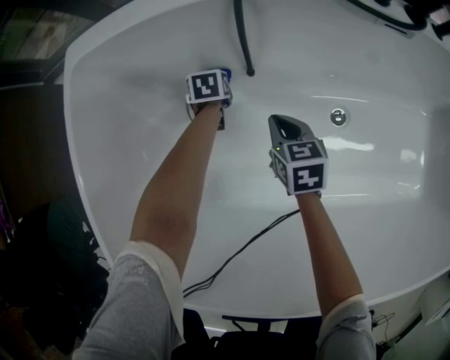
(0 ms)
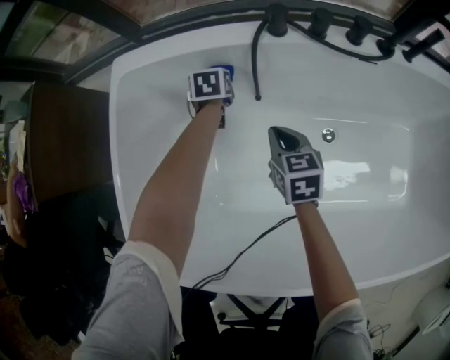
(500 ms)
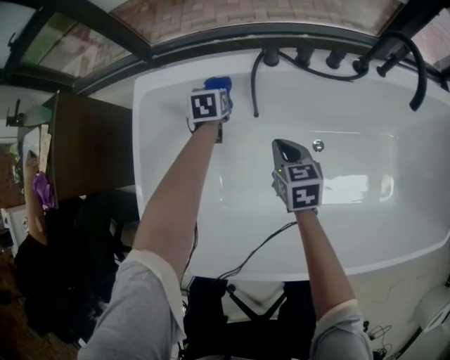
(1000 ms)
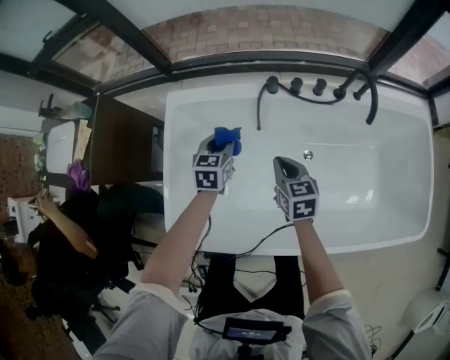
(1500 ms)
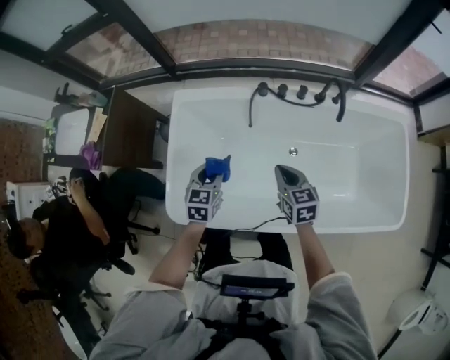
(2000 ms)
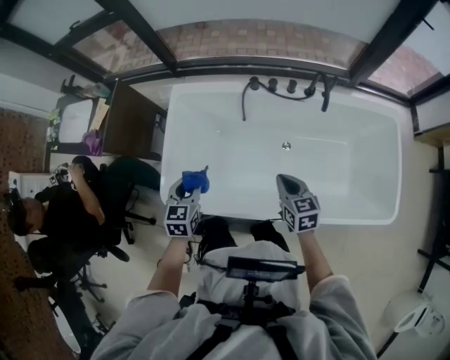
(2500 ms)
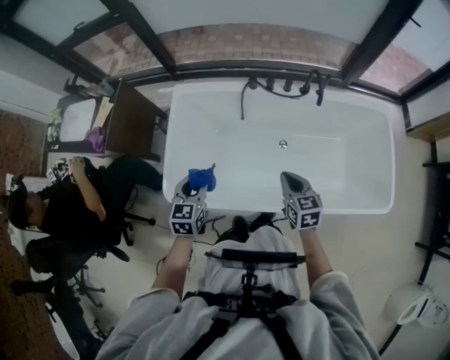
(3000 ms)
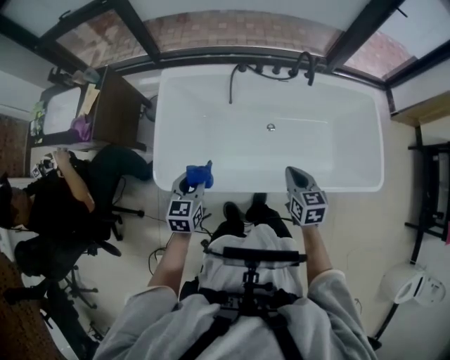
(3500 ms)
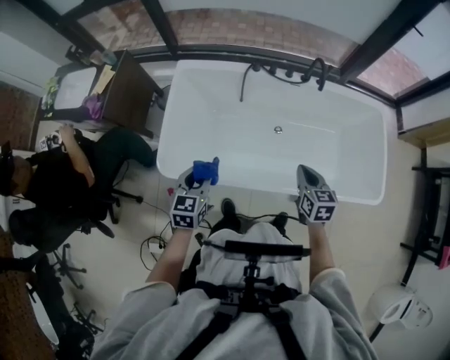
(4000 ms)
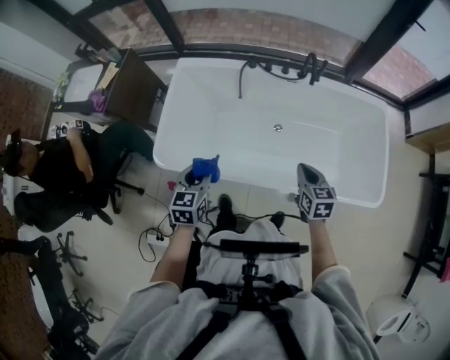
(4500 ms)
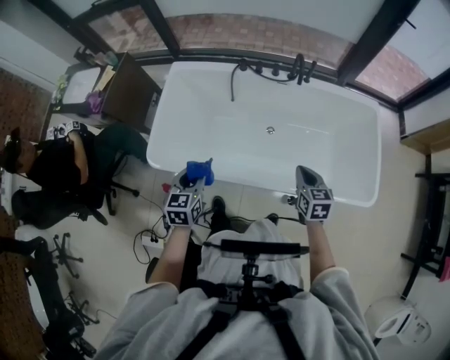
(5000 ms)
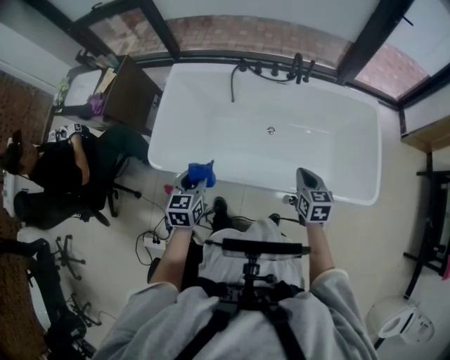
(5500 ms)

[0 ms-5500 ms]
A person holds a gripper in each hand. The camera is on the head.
0 ms to 2000 ms: The left gripper is displaced upward and backward by about 70 cm, and rotates some 30 degrees, while the right gripper travels upward by approximately 50 cm.
2000 ms to 3500 ms: The two grippers go approximately 20 cm backward.
3500 ms to 5500 ms: The right gripper travels to the right by about 20 cm. The left gripper travels to the right and backward by approximately 15 cm.

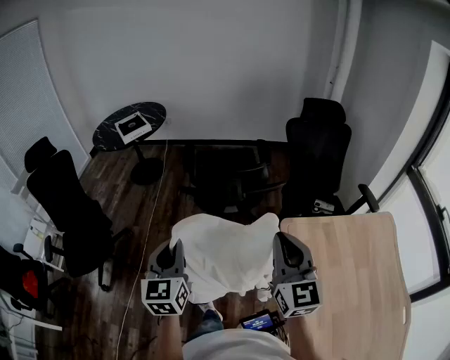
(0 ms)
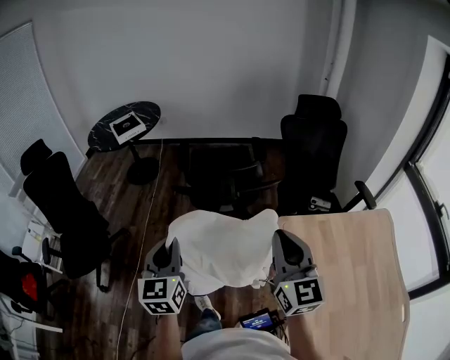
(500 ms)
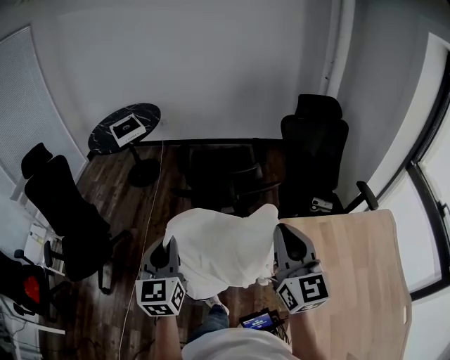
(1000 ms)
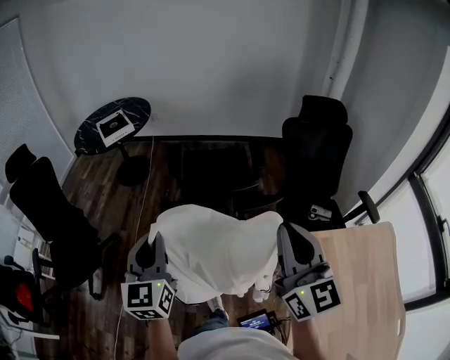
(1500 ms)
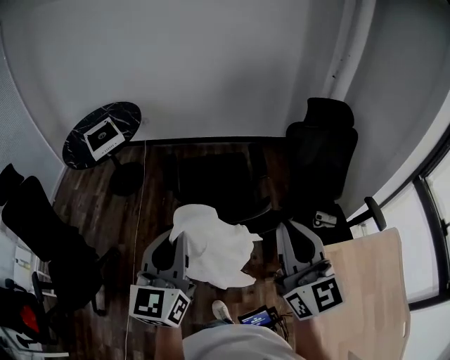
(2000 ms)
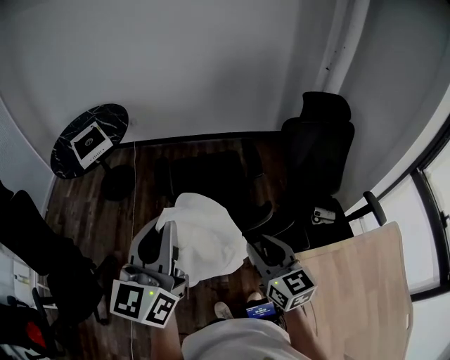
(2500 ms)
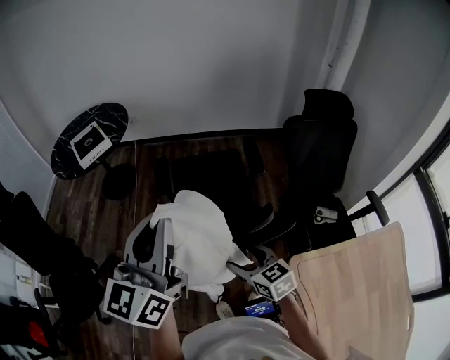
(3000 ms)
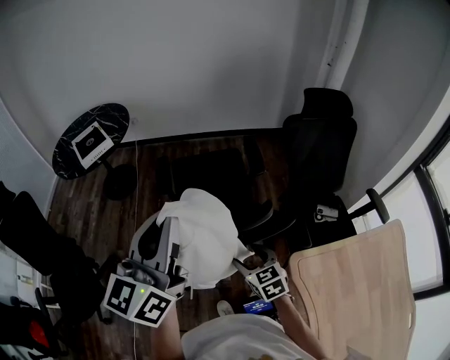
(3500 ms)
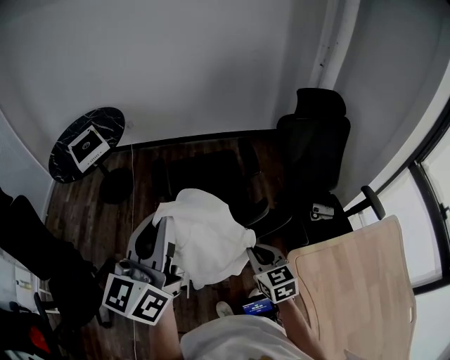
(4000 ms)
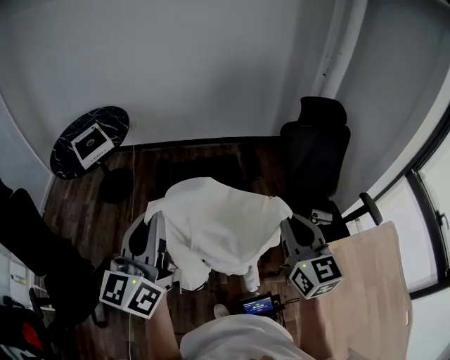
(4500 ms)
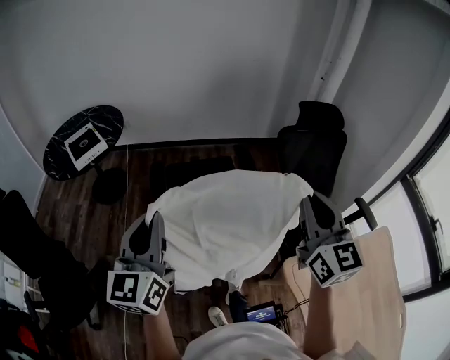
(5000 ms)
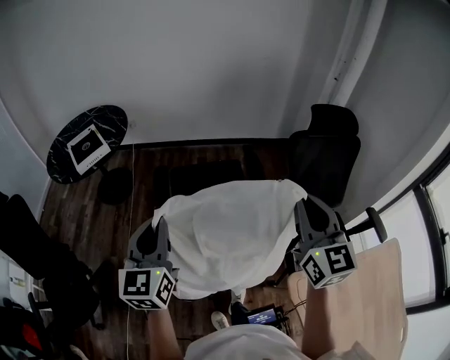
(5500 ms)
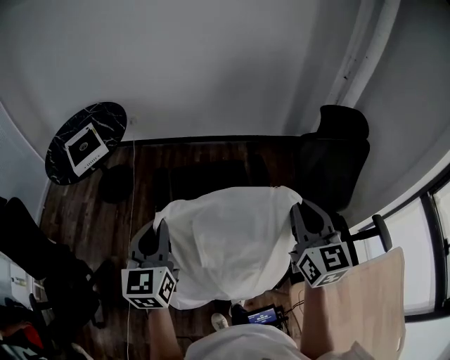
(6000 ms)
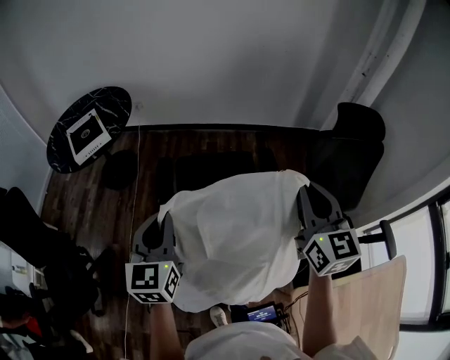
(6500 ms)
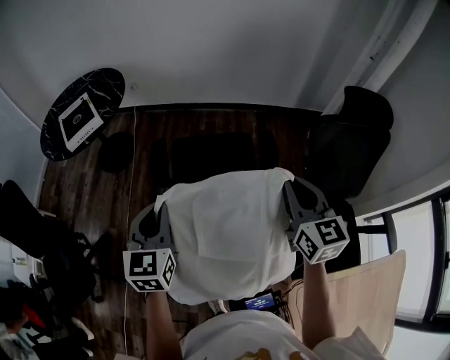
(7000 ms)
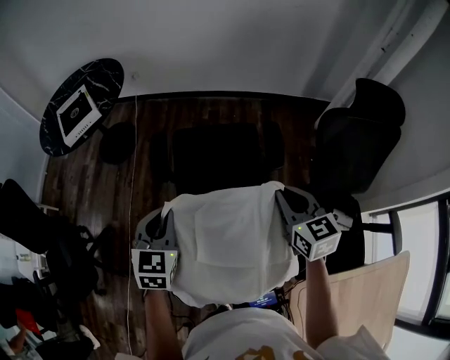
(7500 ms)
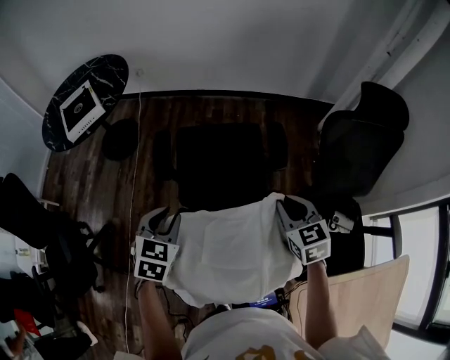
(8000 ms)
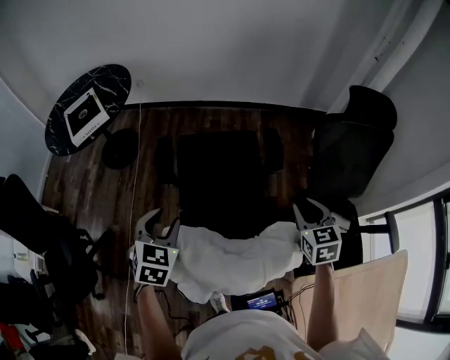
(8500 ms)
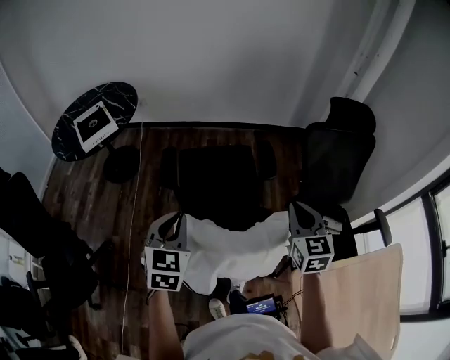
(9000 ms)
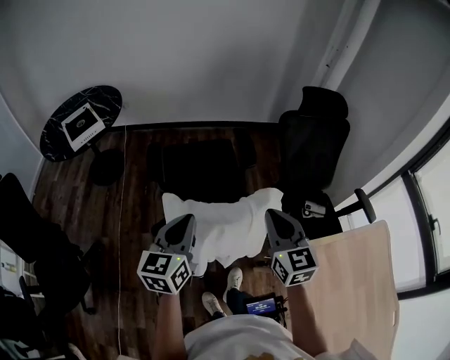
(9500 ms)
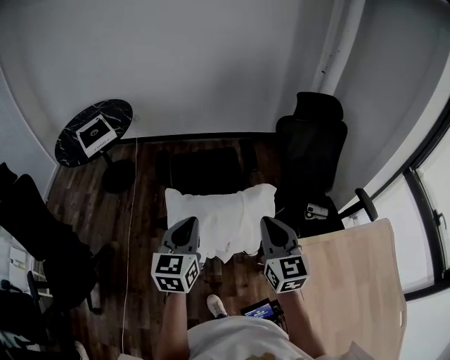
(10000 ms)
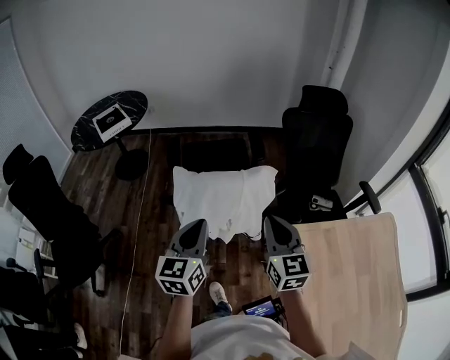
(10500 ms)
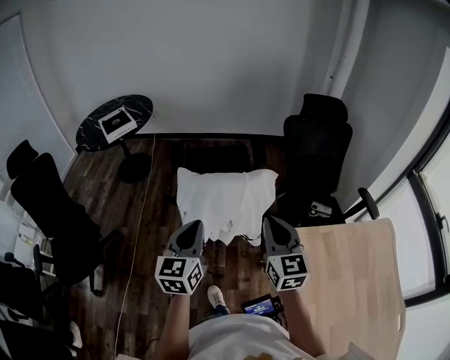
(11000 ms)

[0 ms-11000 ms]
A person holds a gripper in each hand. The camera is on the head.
0 ms to 2000 ms: Both grippers move forward, approximately 25 cm.
2000 ms to 3500 ms: The left gripper travels forward and upward by approximately 10 cm; the right gripper goes approximately 30 cm downward, points its fingers about 50 degrees further downward, and opens its fingers.
3500 ms to 5500 ms: The right gripper heads upward and forward, covering about 35 cm, tilts its fingers approximately 40 degrees upward, and closes its fingers, while the left gripper is displaced forward, downward and to the left by roughly 15 cm, and rotates some 20 degrees.
5500 ms to 7500 ms: The two grippers go some 25 cm downward and forward. The left gripper rotates roughly 30 degrees, while the right gripper rotates some 30 degrees.
7500 ms to 9000 ms: Both grippers move backward and upward, about 15 cm. The right gripper rotates about 20 degrees, while the left gripper opens and closes again.
9000 ms to 11000 ms: The two grippers go some 25 cm backward. The left gripper turns by about 20 degrees.

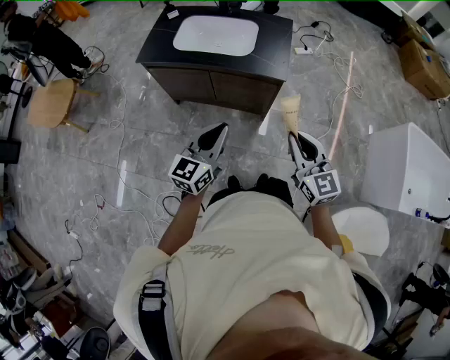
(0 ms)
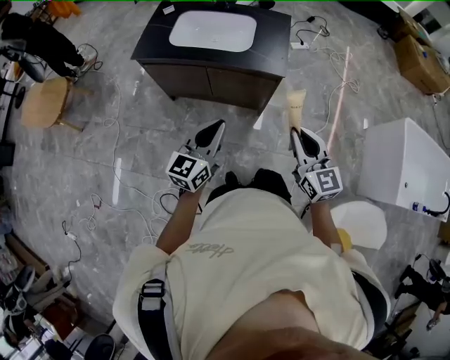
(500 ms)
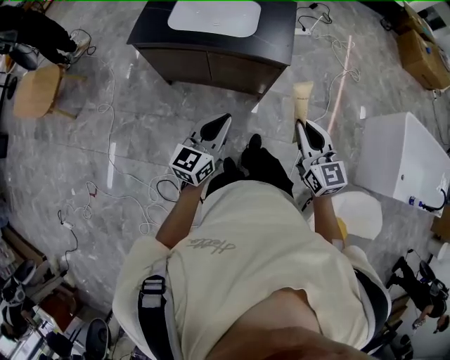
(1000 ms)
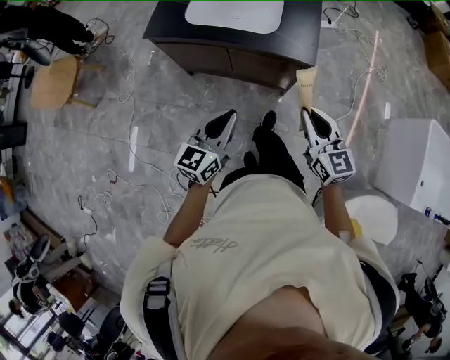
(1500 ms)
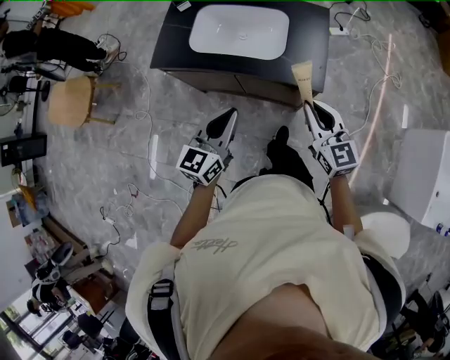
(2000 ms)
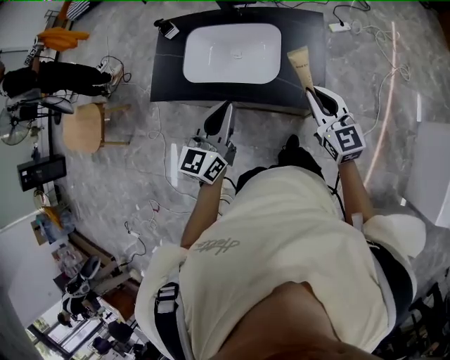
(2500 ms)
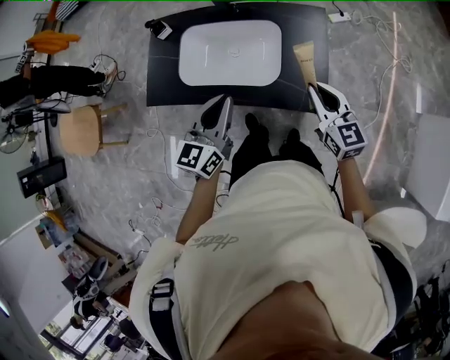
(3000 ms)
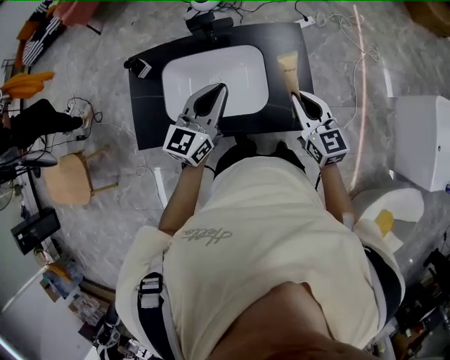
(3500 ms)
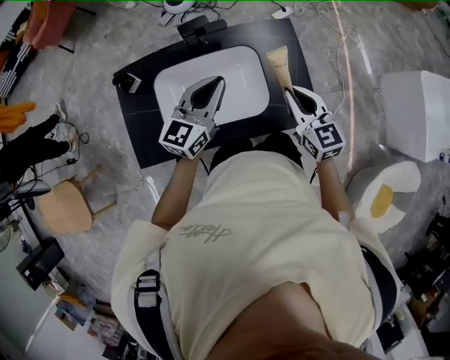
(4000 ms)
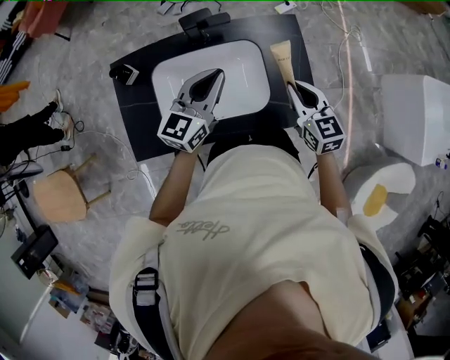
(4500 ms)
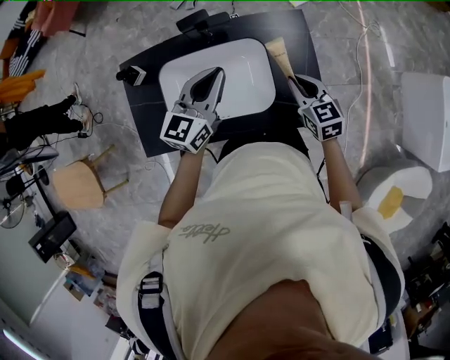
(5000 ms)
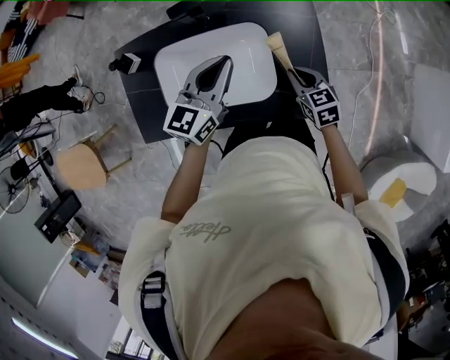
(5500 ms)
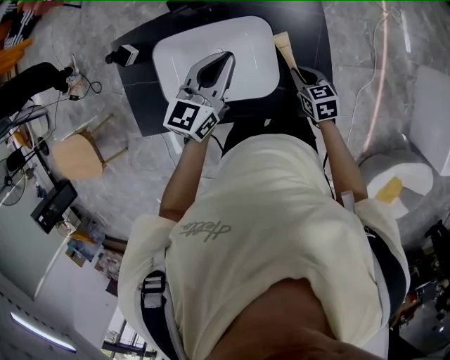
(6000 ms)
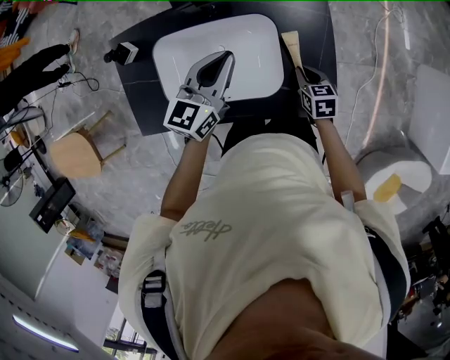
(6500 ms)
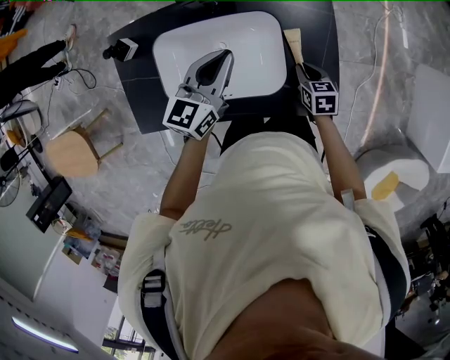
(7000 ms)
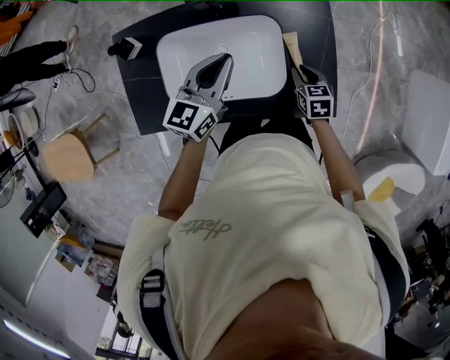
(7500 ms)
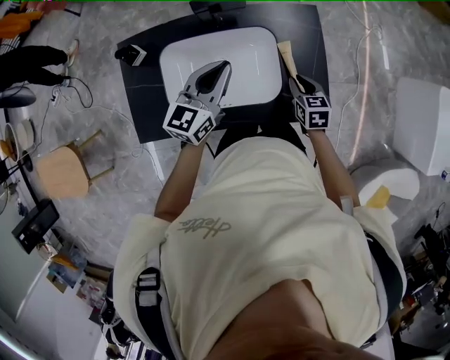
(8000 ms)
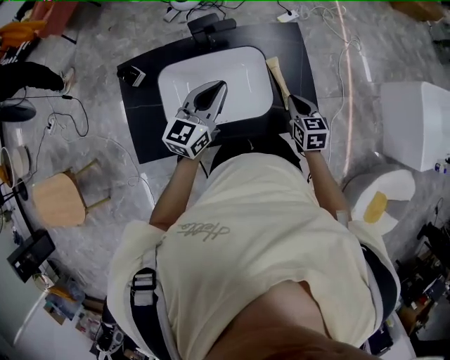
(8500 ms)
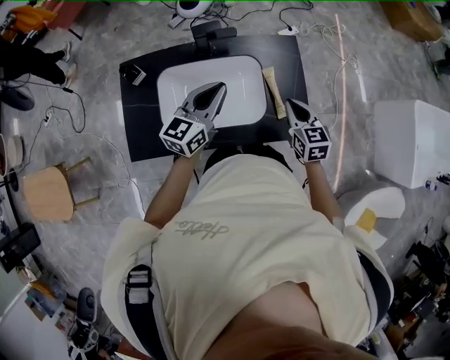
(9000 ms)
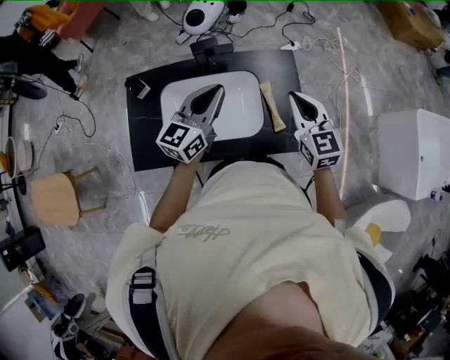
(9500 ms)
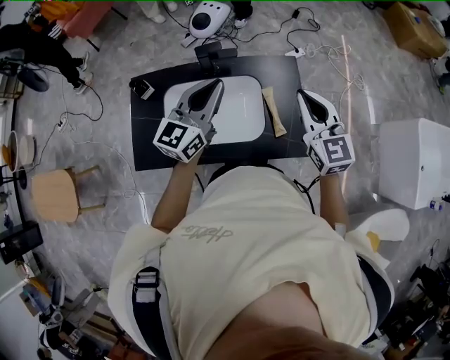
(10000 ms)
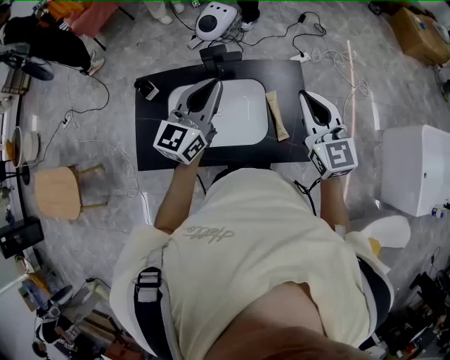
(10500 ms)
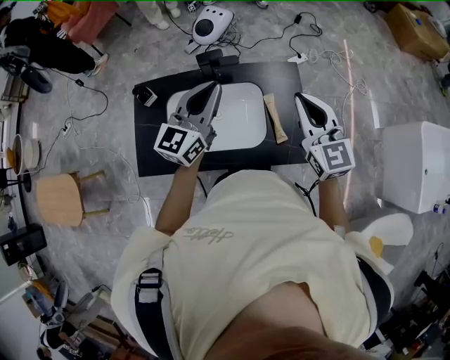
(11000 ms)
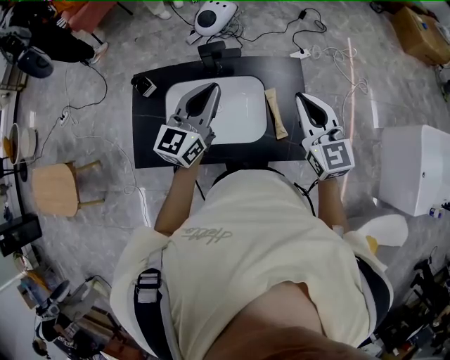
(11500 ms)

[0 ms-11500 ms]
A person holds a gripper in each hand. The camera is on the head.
0 ms to 2000 ms: The two grippers go approximately 25 cm forward.
2000 ms to 4000 ms: The right gripper shifts by about 30 cm, and turns by approximately 20 degrees. The left gripper ends up some 40 cm from where it was, and turns by approximately 30 degrees.
4000 ms to 6000 ms: The left gripper goes roughly 10 cm downward, forward and to the right. Meanwhile the right gripper travels downward by about 25 cm, and swivels roughly 30 degrees.
6000 ms to 7500 ms: The left gripper goes some 5 cm to the left.
7500 ms to 9500 ms: The right gripper heads upward, covering roughly 30 cm, and tilts its fingers approximately 40 degrees upward. The left gripper is displaced upward and backward by approximately 15 cm.
9500 ms to 11500 ms: The right gripper is displaced upward by approximately 5 cm.
